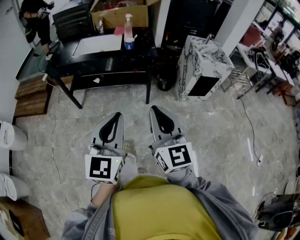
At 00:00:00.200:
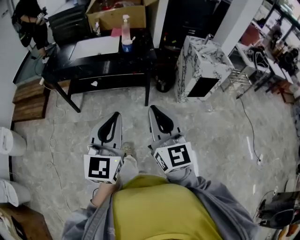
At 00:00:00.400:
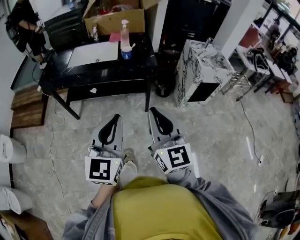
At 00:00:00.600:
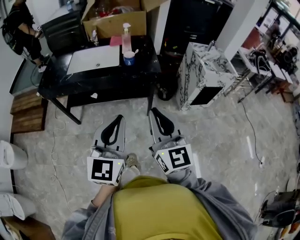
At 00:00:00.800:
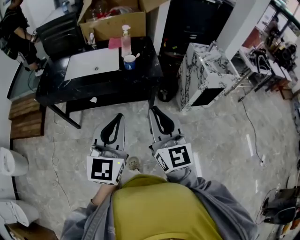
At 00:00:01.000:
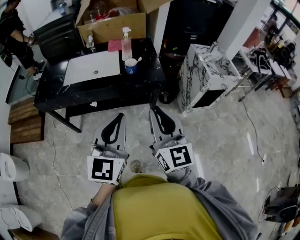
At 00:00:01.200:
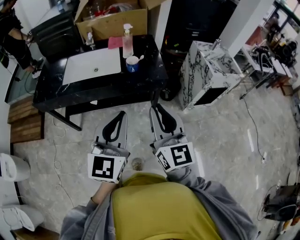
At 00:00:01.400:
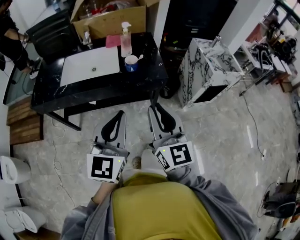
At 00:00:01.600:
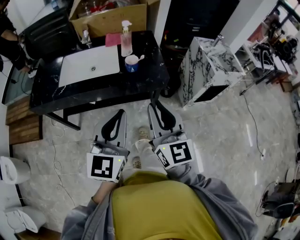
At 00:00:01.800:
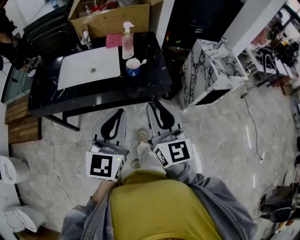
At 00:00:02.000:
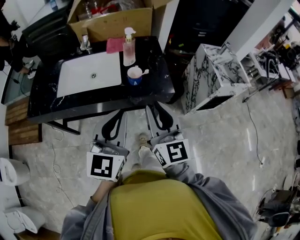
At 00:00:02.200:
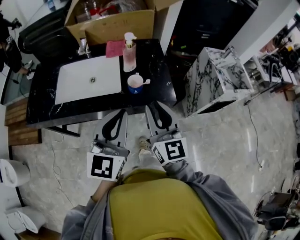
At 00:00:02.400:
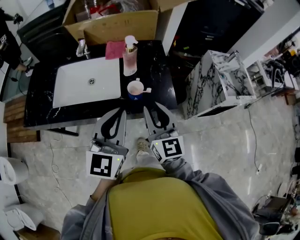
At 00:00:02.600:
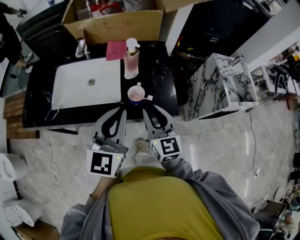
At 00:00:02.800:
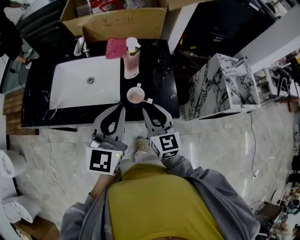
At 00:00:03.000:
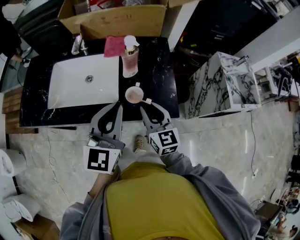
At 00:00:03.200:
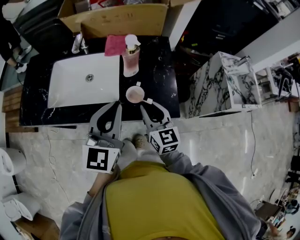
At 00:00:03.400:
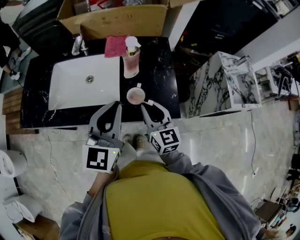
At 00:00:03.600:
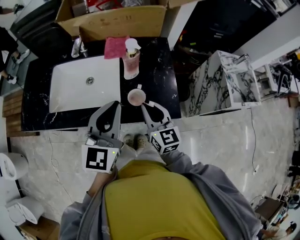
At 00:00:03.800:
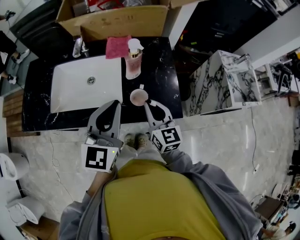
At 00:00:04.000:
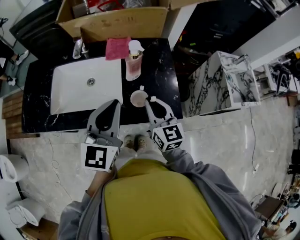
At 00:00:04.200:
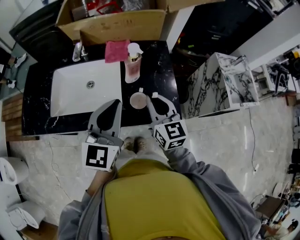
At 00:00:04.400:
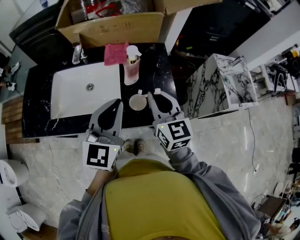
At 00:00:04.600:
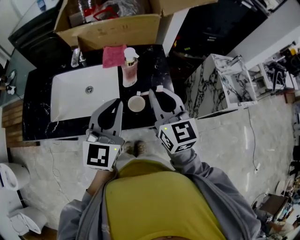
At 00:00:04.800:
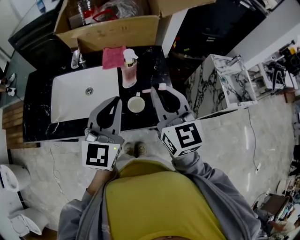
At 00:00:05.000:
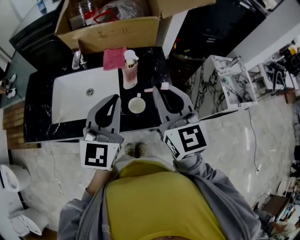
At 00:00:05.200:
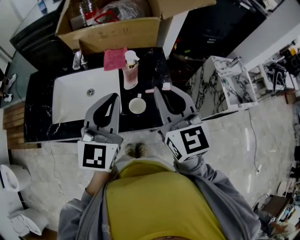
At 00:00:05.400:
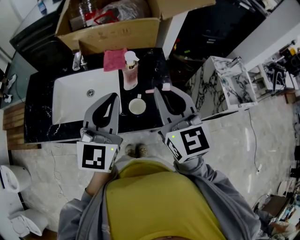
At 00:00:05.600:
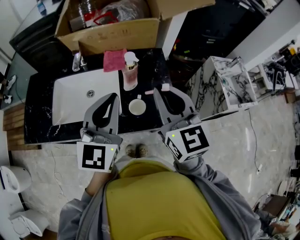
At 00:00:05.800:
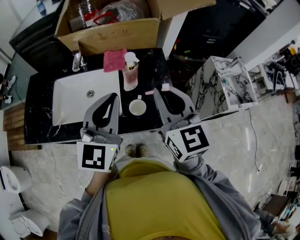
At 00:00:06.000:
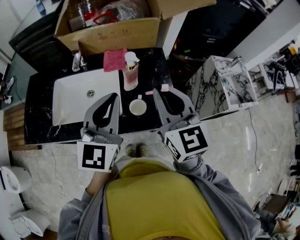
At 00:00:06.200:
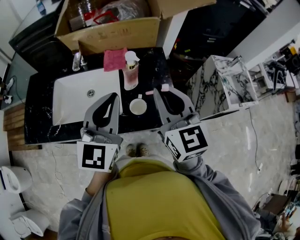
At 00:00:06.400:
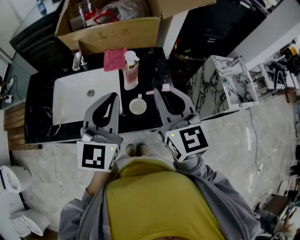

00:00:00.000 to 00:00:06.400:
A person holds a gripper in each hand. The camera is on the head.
00:00:00.000 to 00:00:01.600: Both grippers travel together forward, about 35 cm.
00:00:01.600 to 00:00:03.200: The left gripper moves forward, about 30 cm. Meanwhile the right gripper shifts roughly 35 cm forward and downward, and swivels roughly 20 degrees.
00:00:03.200 to 00:00:04.800: The right gripper heads upward, covering approximately 20 cm. The left gripper shifts by approximately 5 cm.
00:00:04.800 to 00:00:06.400: There are only small adjustments of the grippers.

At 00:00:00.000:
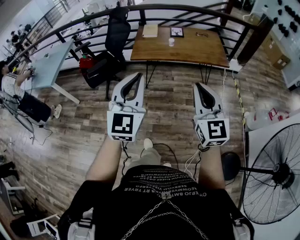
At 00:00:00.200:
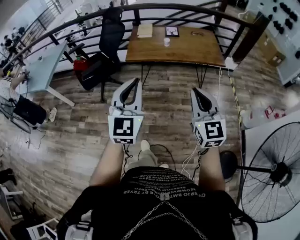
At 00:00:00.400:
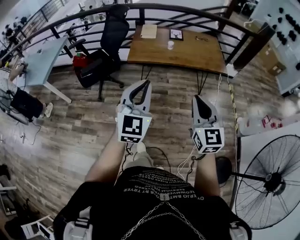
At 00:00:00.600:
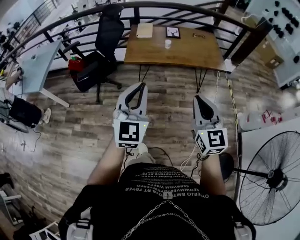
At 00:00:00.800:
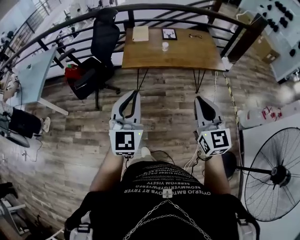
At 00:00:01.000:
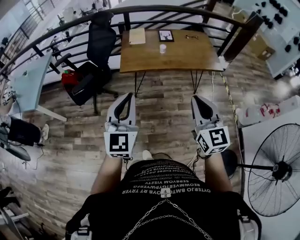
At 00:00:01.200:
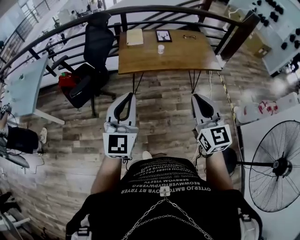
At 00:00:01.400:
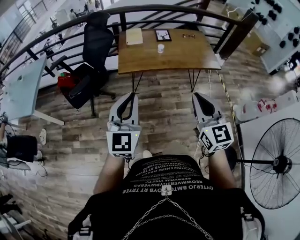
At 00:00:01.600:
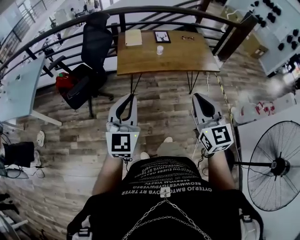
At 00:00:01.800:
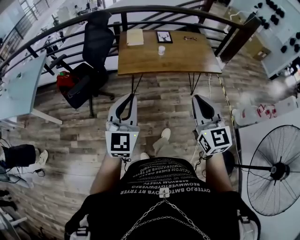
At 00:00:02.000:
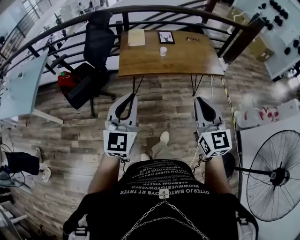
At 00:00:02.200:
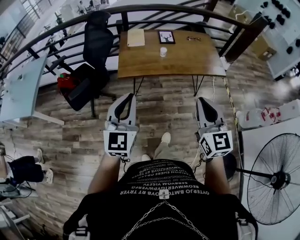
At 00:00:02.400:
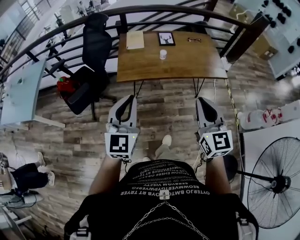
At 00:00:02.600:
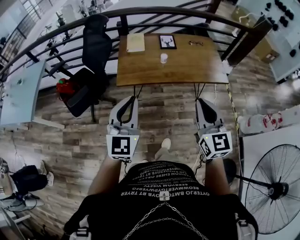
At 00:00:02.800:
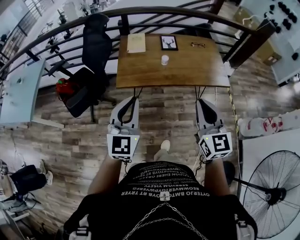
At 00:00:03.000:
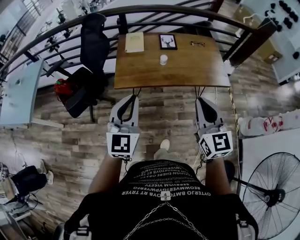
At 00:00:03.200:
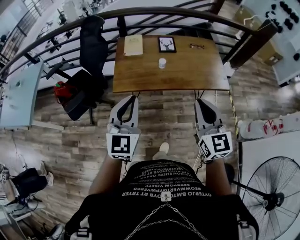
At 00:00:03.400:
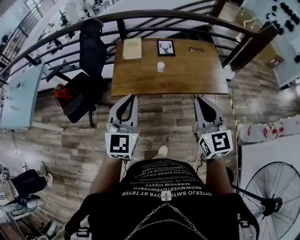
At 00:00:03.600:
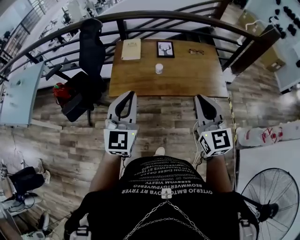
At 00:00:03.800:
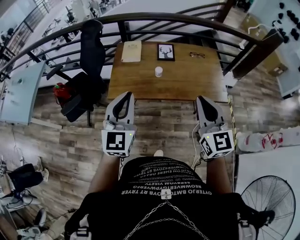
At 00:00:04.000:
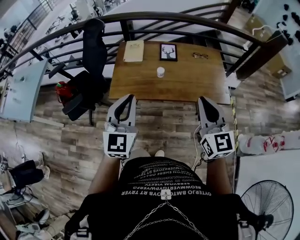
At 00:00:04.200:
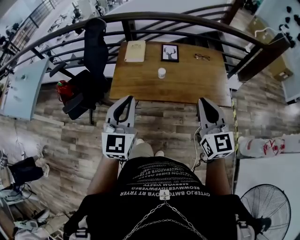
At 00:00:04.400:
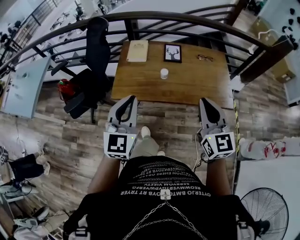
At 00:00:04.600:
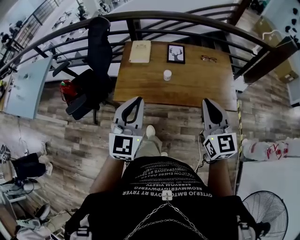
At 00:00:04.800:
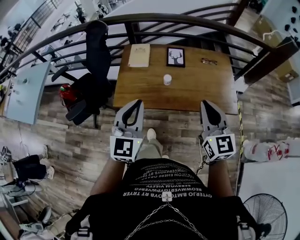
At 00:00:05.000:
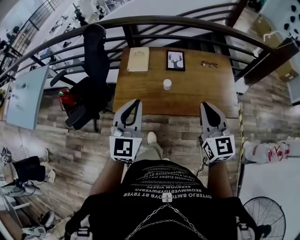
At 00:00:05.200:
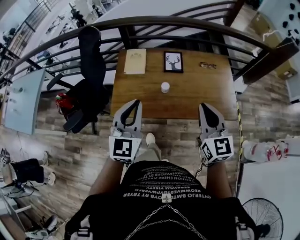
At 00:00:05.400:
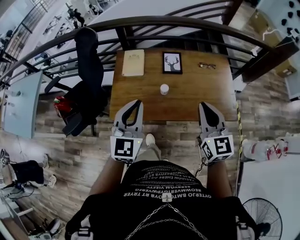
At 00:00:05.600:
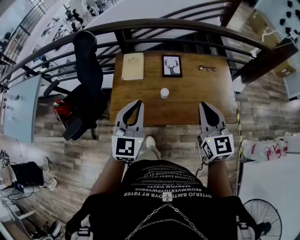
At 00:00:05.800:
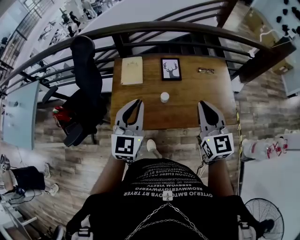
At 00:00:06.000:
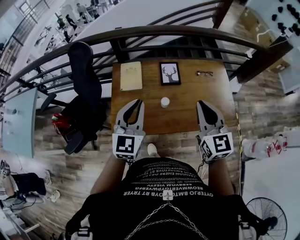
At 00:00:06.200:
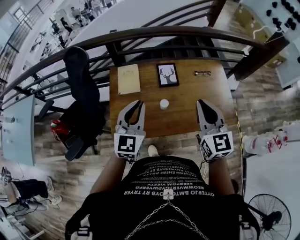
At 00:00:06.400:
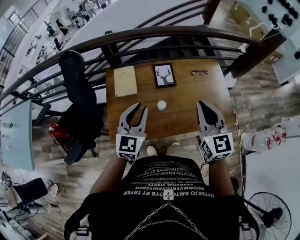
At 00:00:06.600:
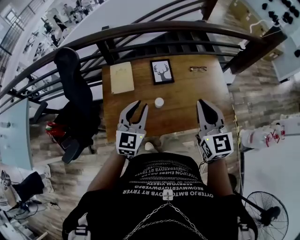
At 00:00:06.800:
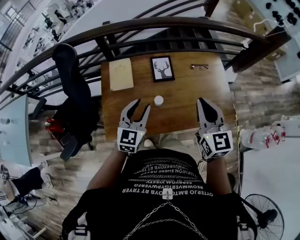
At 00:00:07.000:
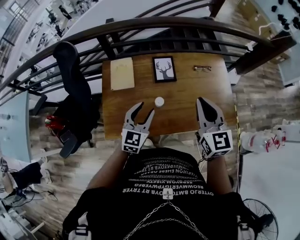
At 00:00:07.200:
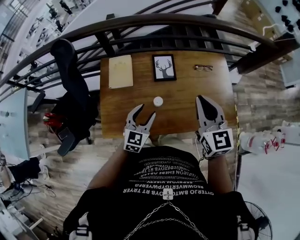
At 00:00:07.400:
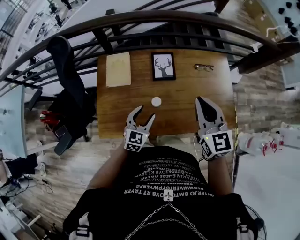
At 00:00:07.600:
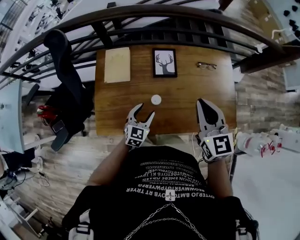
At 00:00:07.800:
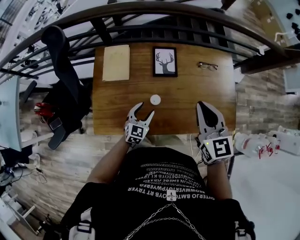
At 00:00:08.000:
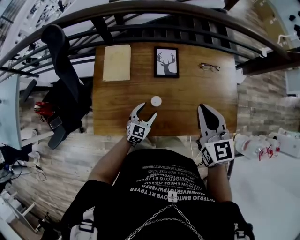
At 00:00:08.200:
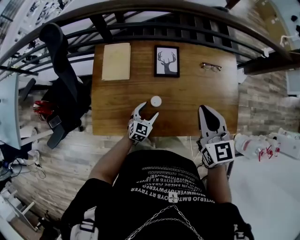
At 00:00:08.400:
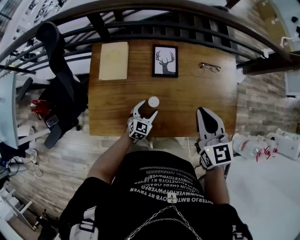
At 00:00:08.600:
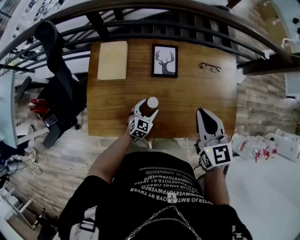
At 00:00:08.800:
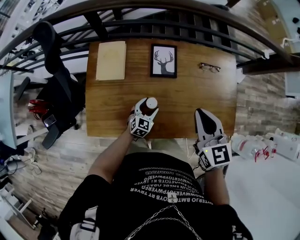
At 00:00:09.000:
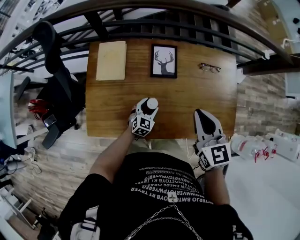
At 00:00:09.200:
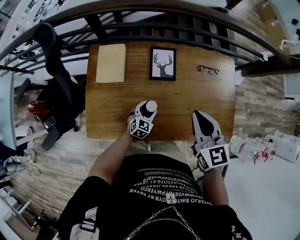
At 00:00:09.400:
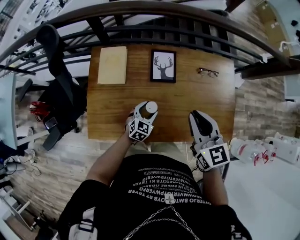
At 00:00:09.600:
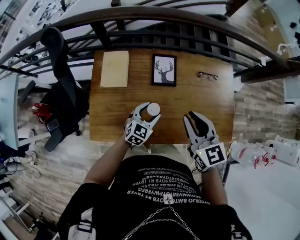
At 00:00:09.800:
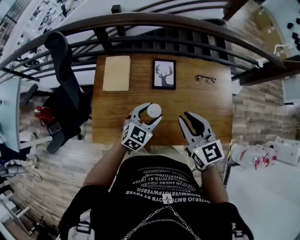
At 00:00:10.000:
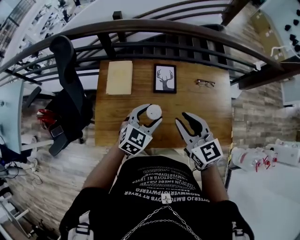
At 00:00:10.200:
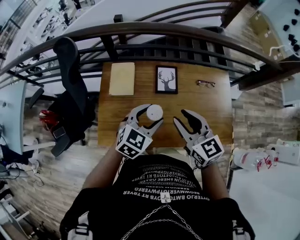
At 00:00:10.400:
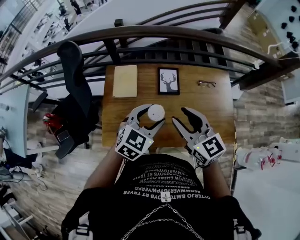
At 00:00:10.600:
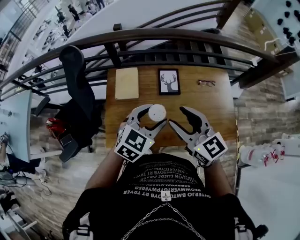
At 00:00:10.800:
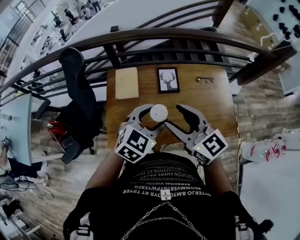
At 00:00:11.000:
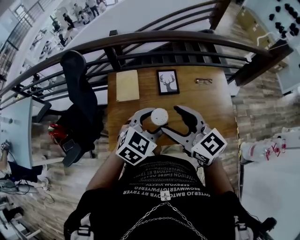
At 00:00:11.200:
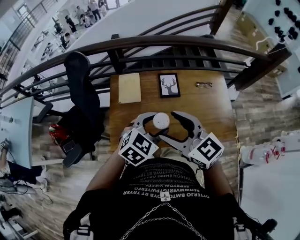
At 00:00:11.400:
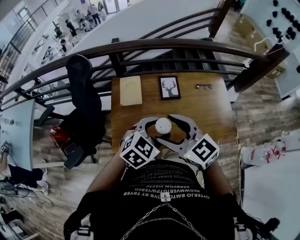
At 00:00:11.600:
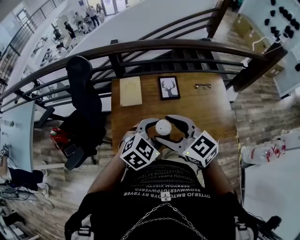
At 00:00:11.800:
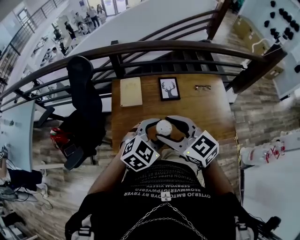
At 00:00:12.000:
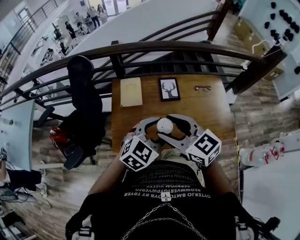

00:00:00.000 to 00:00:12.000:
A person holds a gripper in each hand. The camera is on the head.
00:00:00.000 to 00:00:01.600: The right gripper travels forward and to the left by about 20 cm. Meanwhile the left gripper travels forward, to the left and downward by approximately 20 cm.
00:00:01.600 to 00:00:03.000: Both grippers move forward, approximately 20 cm.
00:00:03.000 to 00:00:04.400: Both grippers travel together forward and to the right, about 15 cm.
00:00:04.400 to 00:00:06.000: Both grippers travel together forward, approximately 25 cm.
00:00:06.000 to 00:00:07.600: The right gripper shifts some 15 cm forward and downward. Meanwhile the left gripper goes some 30 cm downward, rotates roughly 20 degrees, and opens up.
00:00:07.600 to 00:00:09.000: The left gripper moves downward and forward, approximately 15 cm. The right gripper moves downward, roughly 5 cm.
00:00:09.000 to 00:00:10.400: The left gripper moves upward, some 35 cm, while the right gripper heads to the left and upward, covering some 15 cm, and opens up.
00:00:10.400 to 00:00:12.000: The right gripper travels to the left, backward and upward by about 15 cm. The left gripper moves backward and upward, approximately 10 cm.

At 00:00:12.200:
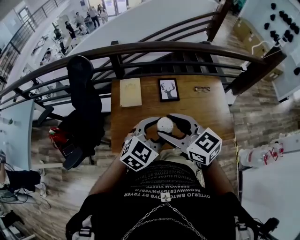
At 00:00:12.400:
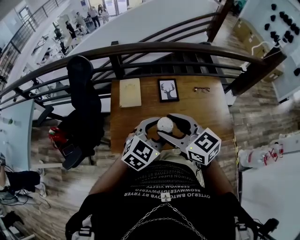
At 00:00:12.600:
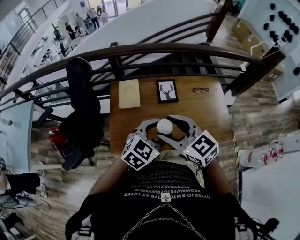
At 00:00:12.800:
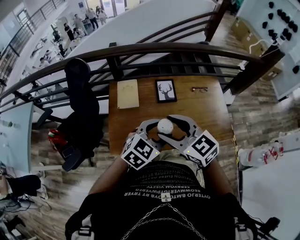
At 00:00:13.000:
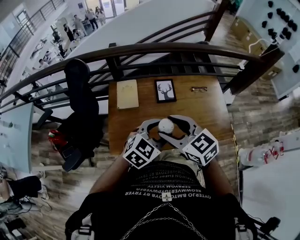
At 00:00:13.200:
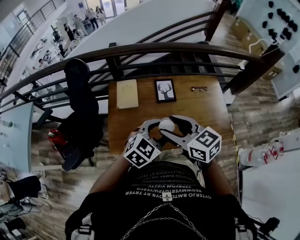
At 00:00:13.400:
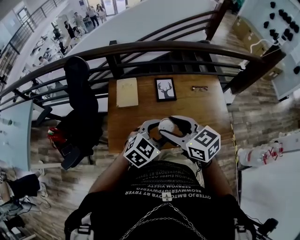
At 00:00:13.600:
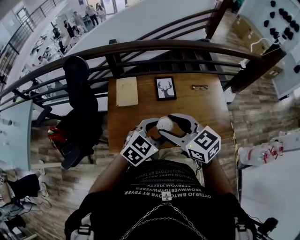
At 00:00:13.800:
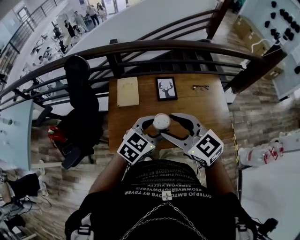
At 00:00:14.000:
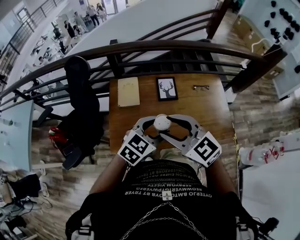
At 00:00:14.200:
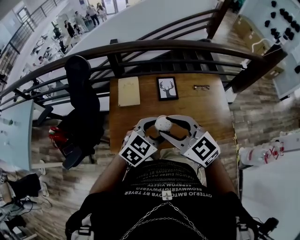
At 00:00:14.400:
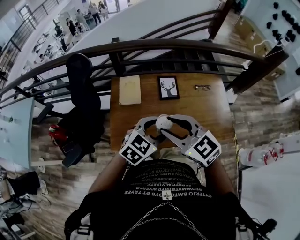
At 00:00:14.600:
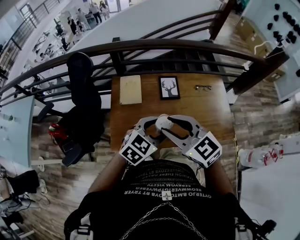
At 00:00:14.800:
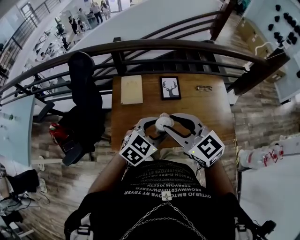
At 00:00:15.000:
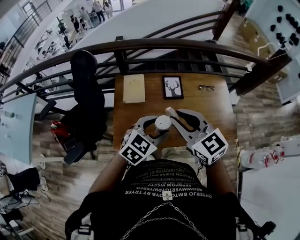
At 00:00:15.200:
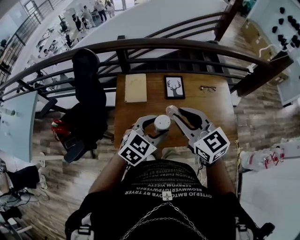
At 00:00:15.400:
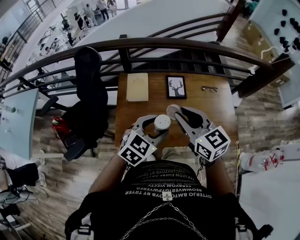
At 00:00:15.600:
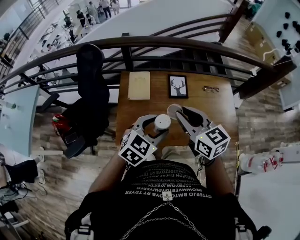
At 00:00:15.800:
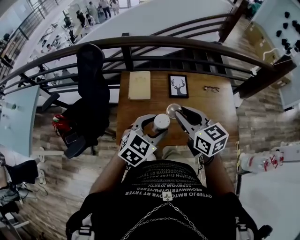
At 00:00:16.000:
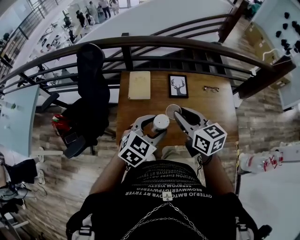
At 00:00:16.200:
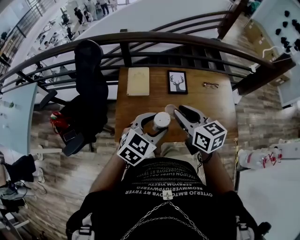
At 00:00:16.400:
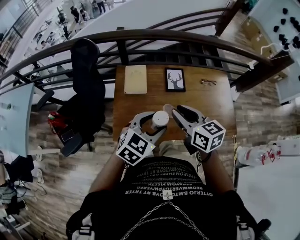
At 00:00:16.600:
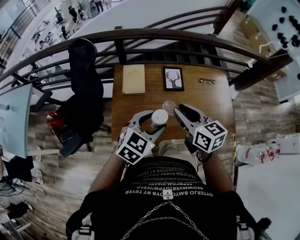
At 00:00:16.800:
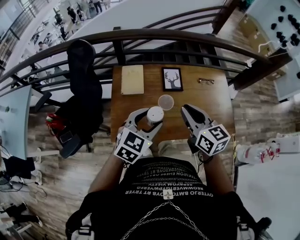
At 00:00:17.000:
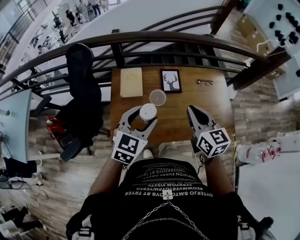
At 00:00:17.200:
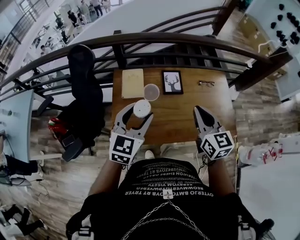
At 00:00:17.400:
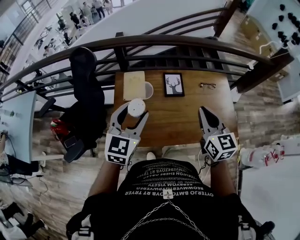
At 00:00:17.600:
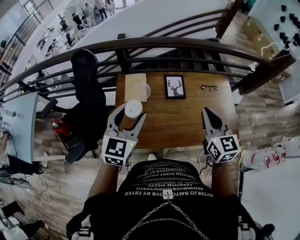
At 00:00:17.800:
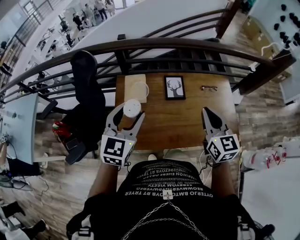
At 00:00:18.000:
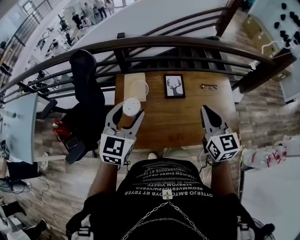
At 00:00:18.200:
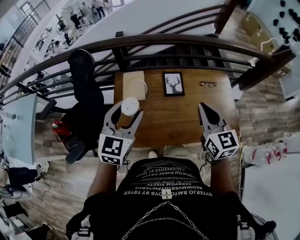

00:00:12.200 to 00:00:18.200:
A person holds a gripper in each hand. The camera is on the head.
00:00:12.200 to 00:00:13.800: The grippers stay close to where they were, moving slightly.
00:00:13.800 to 00:00:15.200: The right gripper closes its fingers.
00:00:15.200 to 00:00:16.600: The right gripper shifts about 5 cm downward, and rotates approximately 20 degrees.
00:00:16.600 to 00:00:18.200: The left gripper is displaced to the left, upward and forward by approximately 10 cm, and swivels roughly 30 degrees. Meanwhile the right gripper travels to the right by roughly 10 cm, and changes its angle by about 20 degrees.
